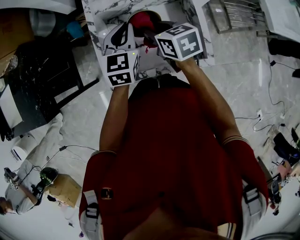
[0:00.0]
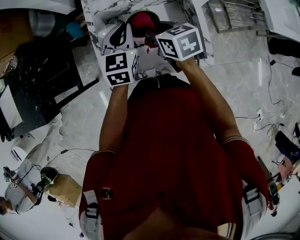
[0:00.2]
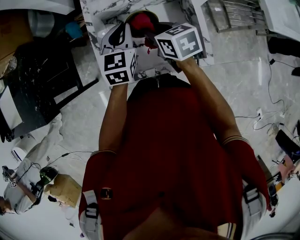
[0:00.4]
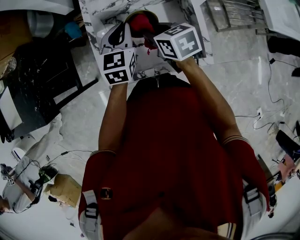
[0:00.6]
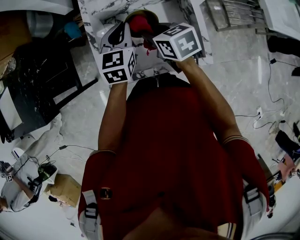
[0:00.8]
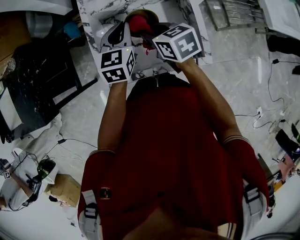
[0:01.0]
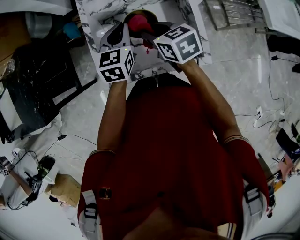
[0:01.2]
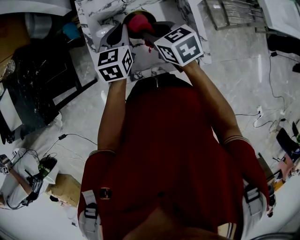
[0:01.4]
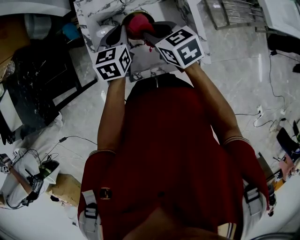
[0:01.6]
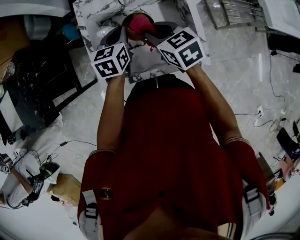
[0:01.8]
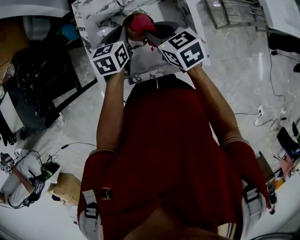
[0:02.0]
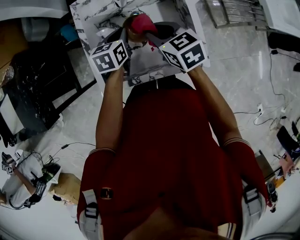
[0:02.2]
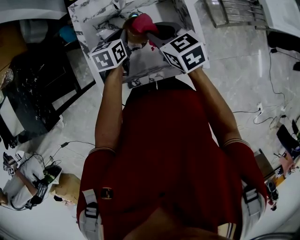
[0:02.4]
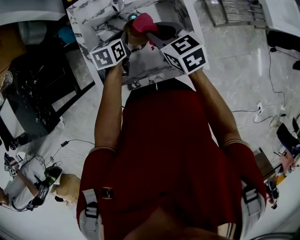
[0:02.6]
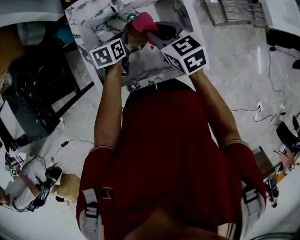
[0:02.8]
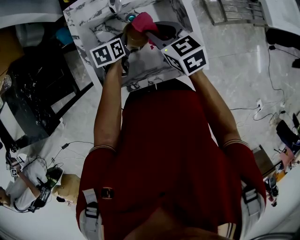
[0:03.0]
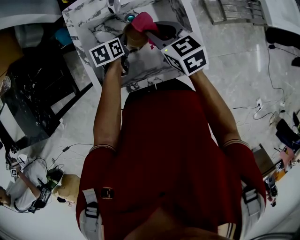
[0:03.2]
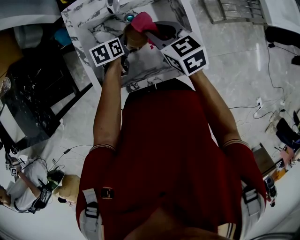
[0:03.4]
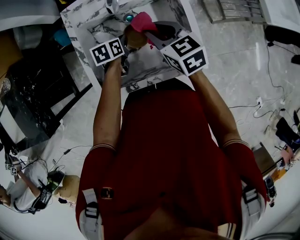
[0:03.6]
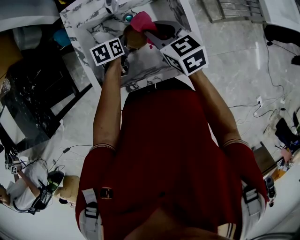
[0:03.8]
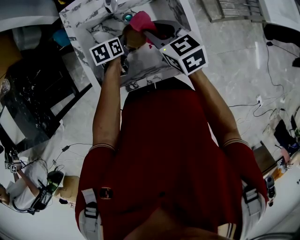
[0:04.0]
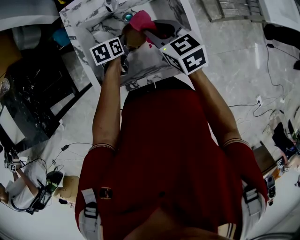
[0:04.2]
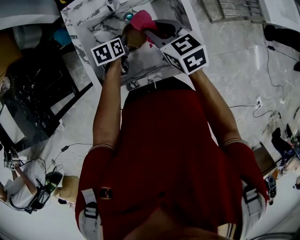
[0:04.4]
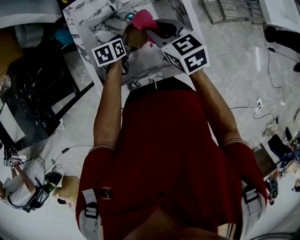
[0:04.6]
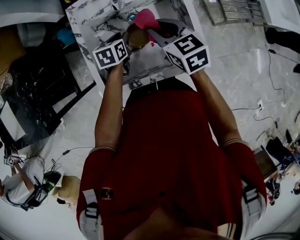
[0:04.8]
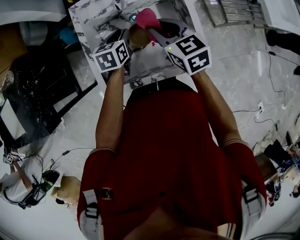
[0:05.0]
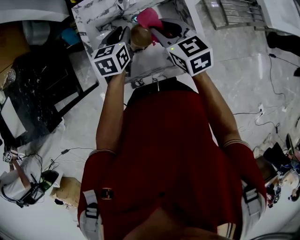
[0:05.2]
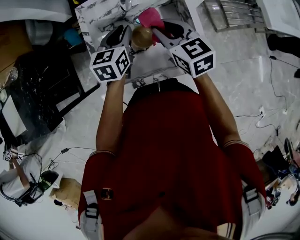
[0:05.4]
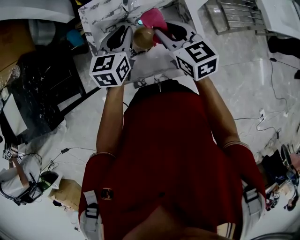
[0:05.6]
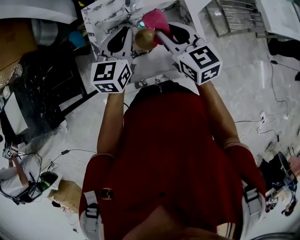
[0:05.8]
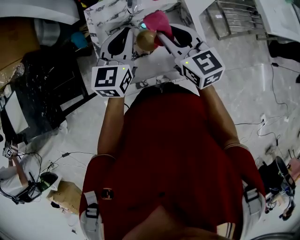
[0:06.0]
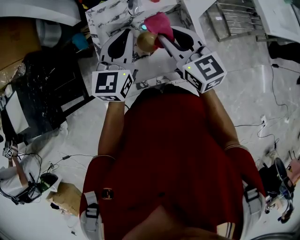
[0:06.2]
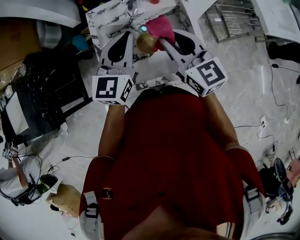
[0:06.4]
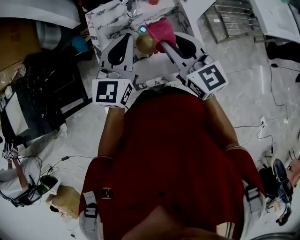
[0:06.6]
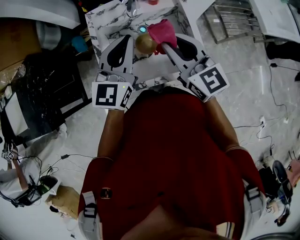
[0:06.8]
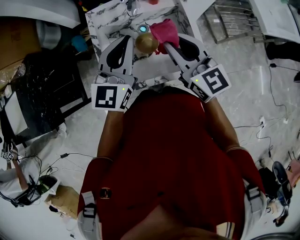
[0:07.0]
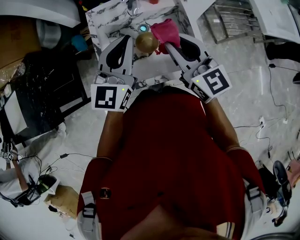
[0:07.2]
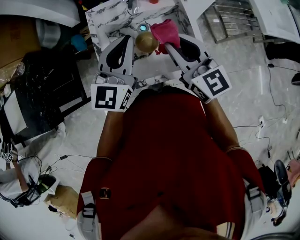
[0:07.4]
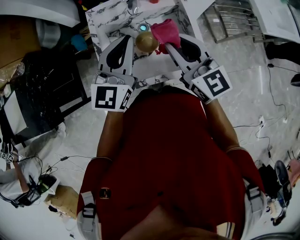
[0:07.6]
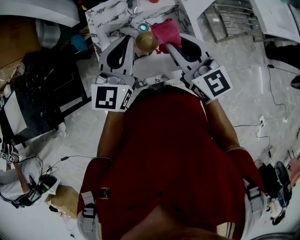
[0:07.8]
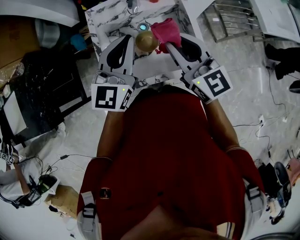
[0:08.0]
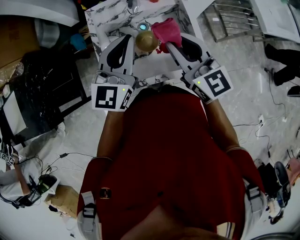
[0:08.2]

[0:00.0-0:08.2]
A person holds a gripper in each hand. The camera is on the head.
0:00.0 to 0:01.6: The left gripper ends up some 5 cm from where it was.
0:01.6 to 0:03.2: The left gripper is displaced downward by approximately 15 cm, and swivels roughly 30 degrees. Meanwhile the right gripper changes place by roughly 5 cm.
0:03.2 to 0:05.0: The left gripper shifts approximately 5 cm upward.
0:05.0 to 0:06.6: The left gripper heads upward, covering approximately 25 cm, and tilts its fingers some 40 degrees upward. Meanwhile the right gripper travels upward and backward by about 15 cm, and rotates some 30 degrees.
0:06.6 to 0:08.2: The grippers make only small movements.

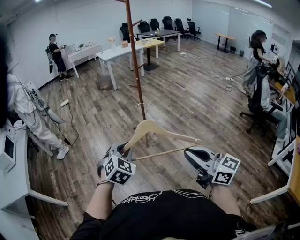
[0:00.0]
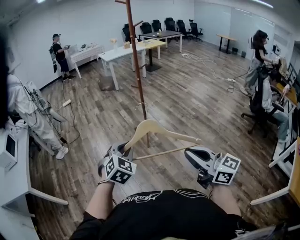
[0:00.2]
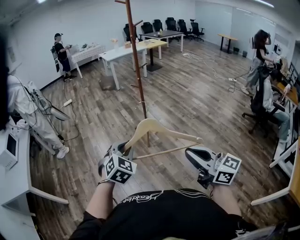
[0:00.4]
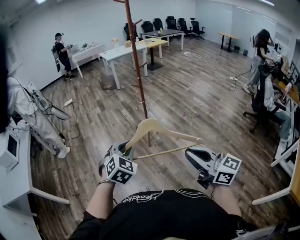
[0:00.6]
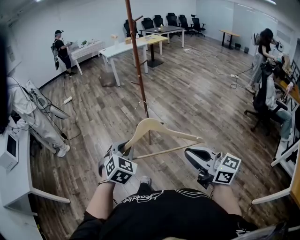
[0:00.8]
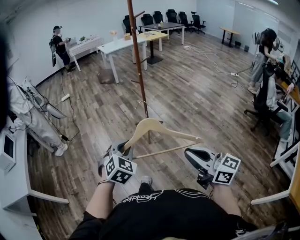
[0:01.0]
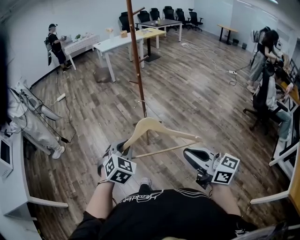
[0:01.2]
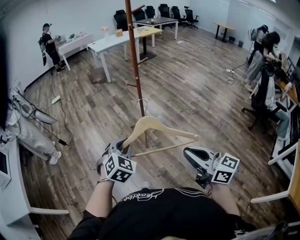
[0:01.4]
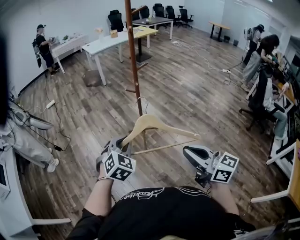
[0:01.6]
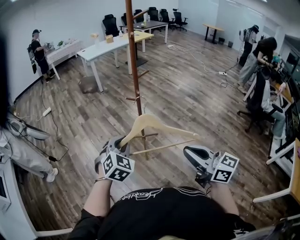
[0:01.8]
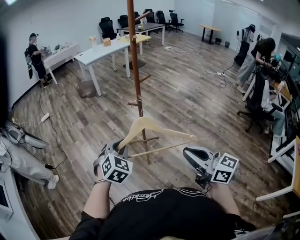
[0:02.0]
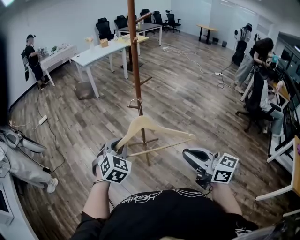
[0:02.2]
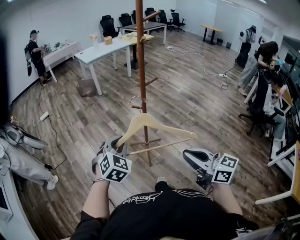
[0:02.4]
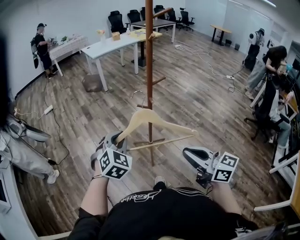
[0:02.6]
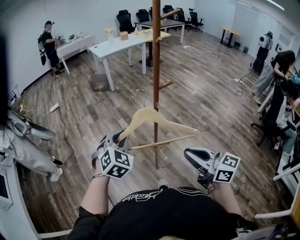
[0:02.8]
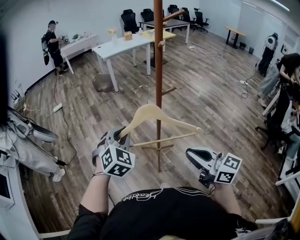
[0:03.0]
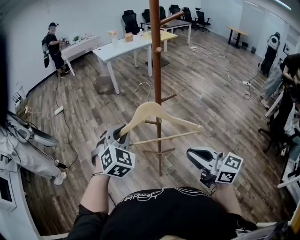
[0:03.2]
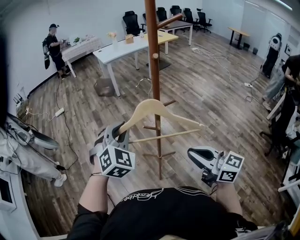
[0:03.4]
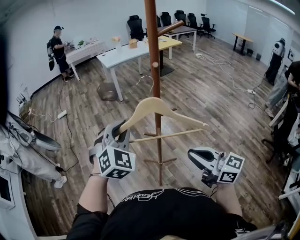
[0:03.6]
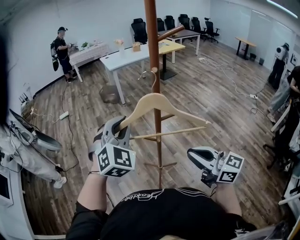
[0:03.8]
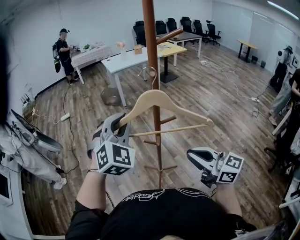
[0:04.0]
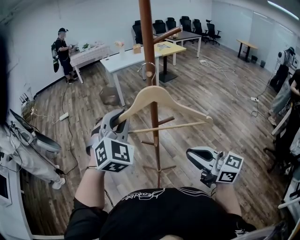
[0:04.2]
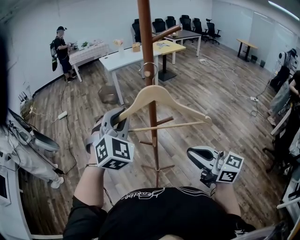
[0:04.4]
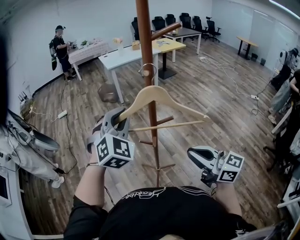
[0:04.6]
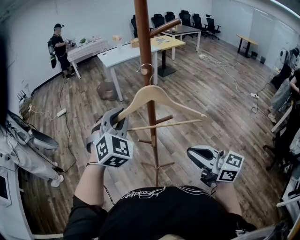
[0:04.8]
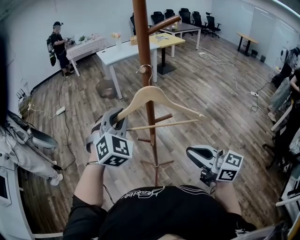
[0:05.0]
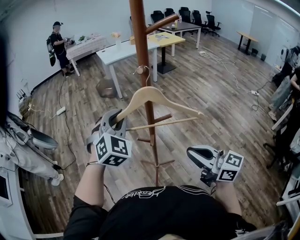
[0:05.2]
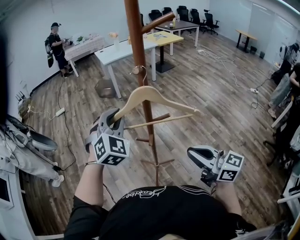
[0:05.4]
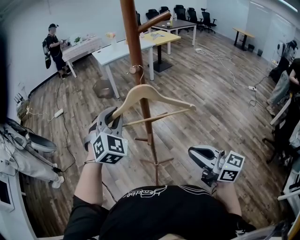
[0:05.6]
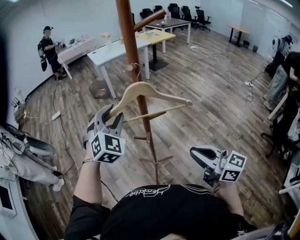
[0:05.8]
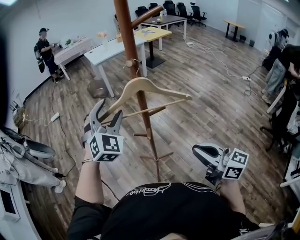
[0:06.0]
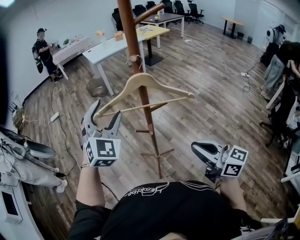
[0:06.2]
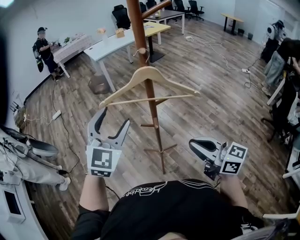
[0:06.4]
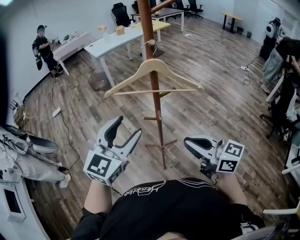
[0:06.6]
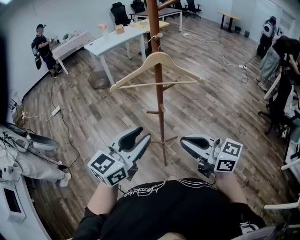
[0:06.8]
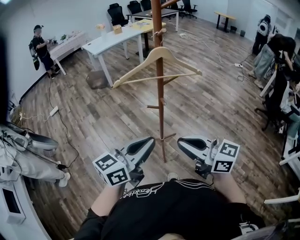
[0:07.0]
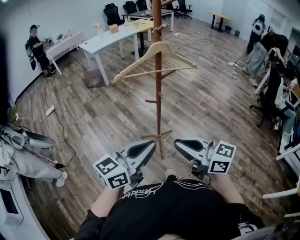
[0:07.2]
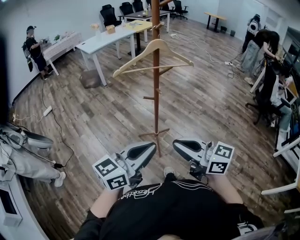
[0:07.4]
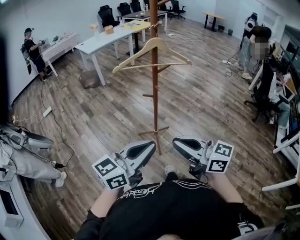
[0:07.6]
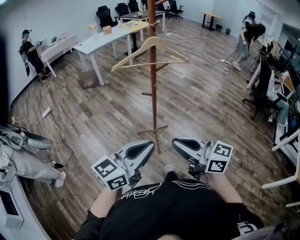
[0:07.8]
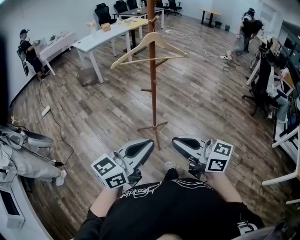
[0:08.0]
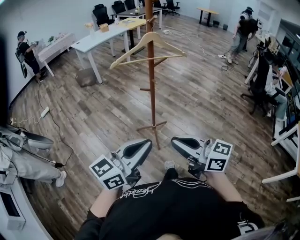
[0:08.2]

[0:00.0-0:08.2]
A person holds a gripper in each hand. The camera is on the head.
0:00.0 to 0:01.6: The grippers both shift forward by about 25 cm.
0:01.6 to 0:03.2: The grippers both shift forward by roughly 30 cm.
0:03.2 to 0:05.0: The left gripper goes some 15 cm forward, to the right and upward; the right gripper moves to the right and forward, approximately 15 cm.
0:05.0 to 0:06.6: The left gripper goes approximately 15 cm backward and to the left, changes its angle by roughly 50 degrees, and opens up; the right gripper travels to the left and backward by some 10 cm.
0:06.6 to 0:08.2: The right gripper heads backward and to the left, covering roughly 25 cm. The left gripper goes roughly 25 cm backward, rotates some 40 degrees, and closes its fingers.

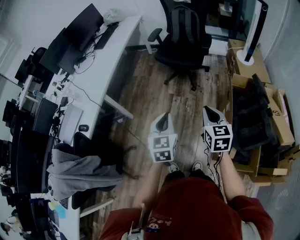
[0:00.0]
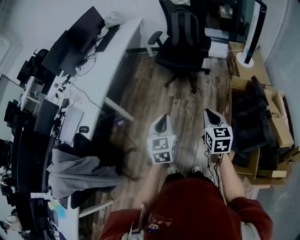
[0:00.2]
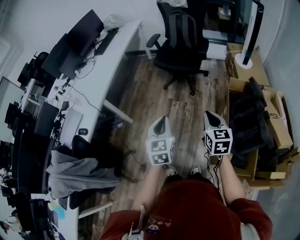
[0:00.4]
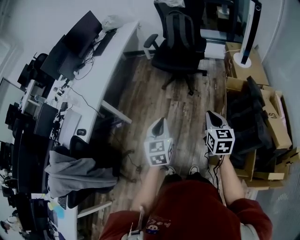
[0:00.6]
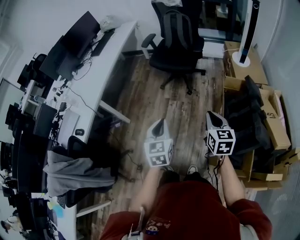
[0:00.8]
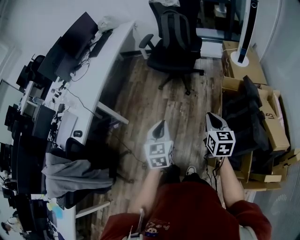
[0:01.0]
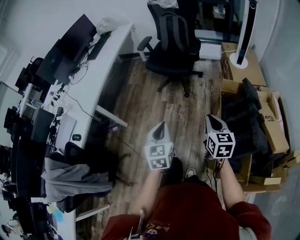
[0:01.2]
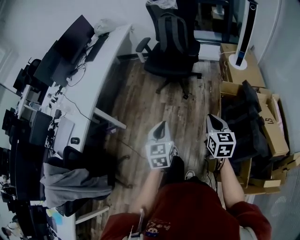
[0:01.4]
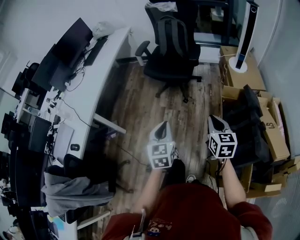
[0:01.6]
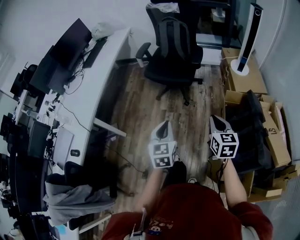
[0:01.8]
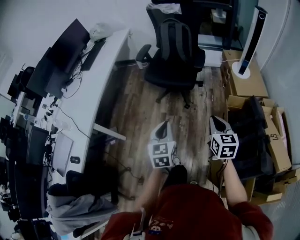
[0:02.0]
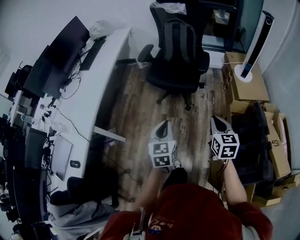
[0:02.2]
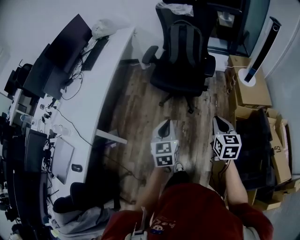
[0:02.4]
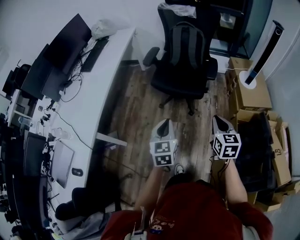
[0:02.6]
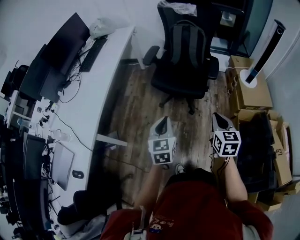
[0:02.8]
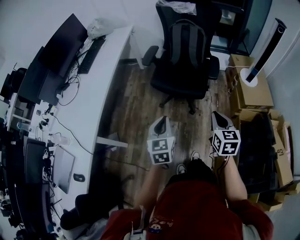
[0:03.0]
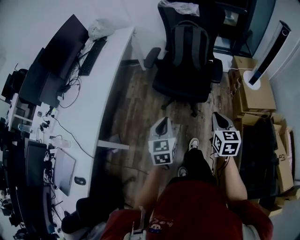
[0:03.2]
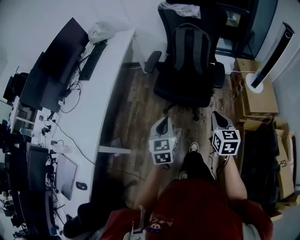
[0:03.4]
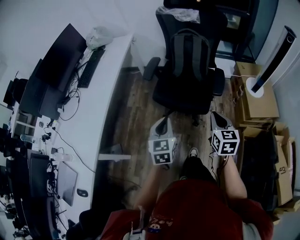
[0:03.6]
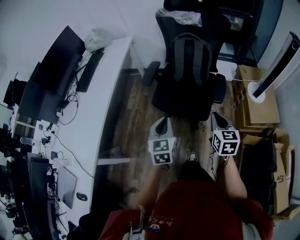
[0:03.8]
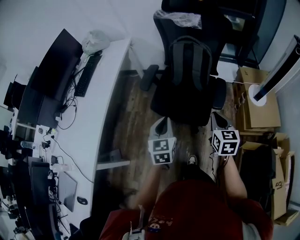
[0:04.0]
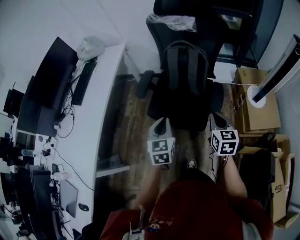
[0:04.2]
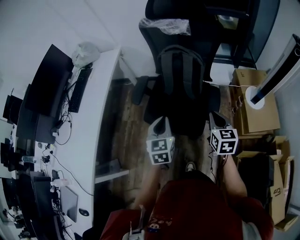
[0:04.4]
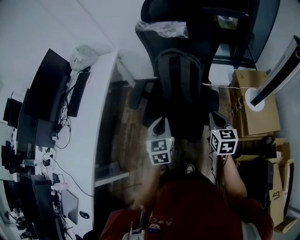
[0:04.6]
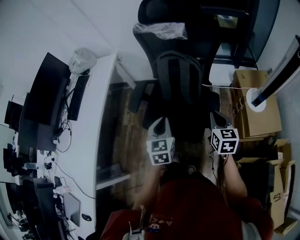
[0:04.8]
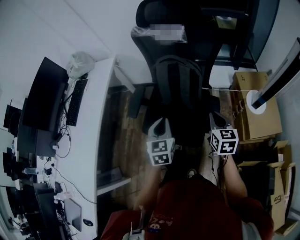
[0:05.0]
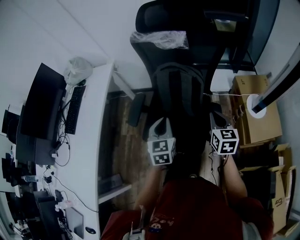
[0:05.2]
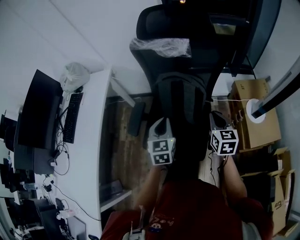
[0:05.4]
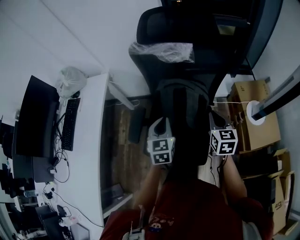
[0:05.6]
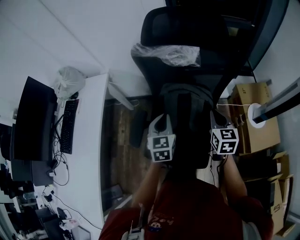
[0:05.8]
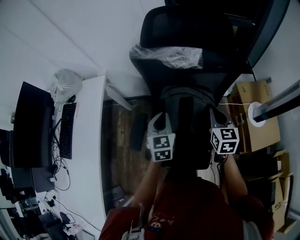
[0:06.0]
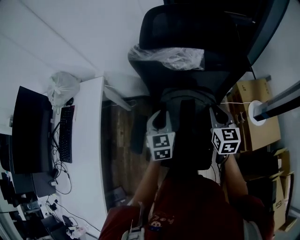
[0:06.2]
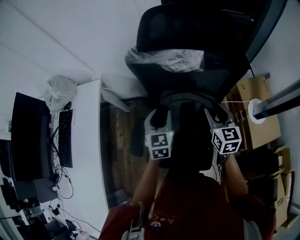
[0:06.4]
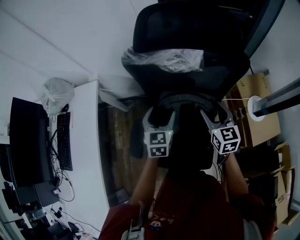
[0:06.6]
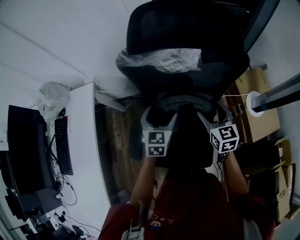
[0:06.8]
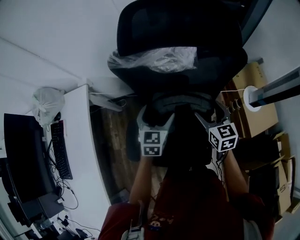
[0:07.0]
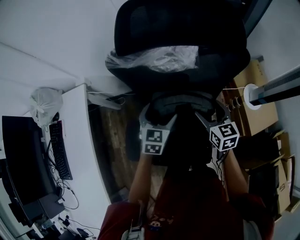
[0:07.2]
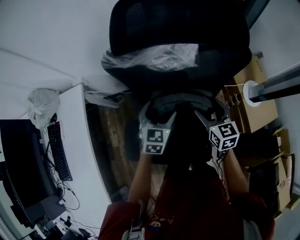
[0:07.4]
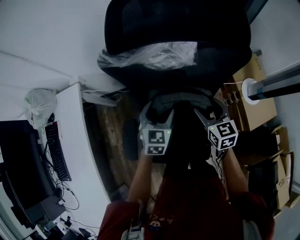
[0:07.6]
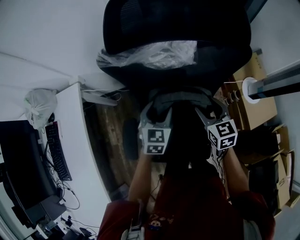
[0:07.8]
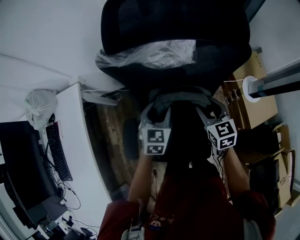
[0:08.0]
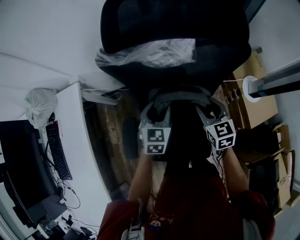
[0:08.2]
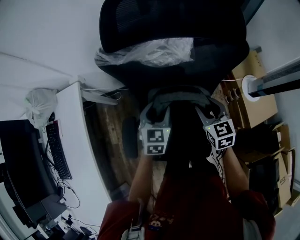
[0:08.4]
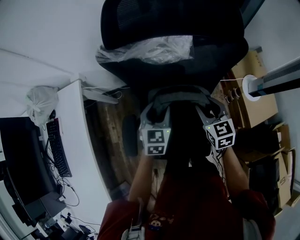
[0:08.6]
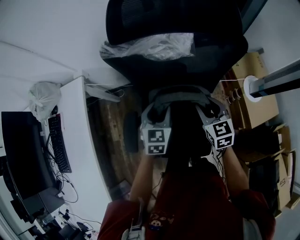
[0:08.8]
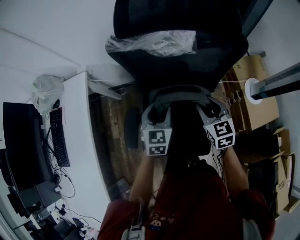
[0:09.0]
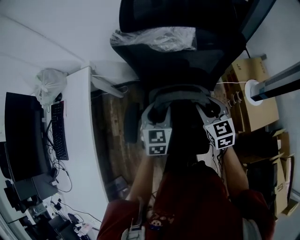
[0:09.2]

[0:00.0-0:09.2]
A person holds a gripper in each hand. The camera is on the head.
0:00.0 to 0:01.6: Both grippers travel together to the right and forward, some 15 cm.
0:01.6 to 0:03.0: Both grippers travel together forward and to the left, about 30 cm.
0:03.0 to 0:04.6: Both grippers are carried forward, about 40 cm.
0:04.6 to 0:06.2: Both grippers move forward, roughly 35 cm.
0:06.2 to 0:07.6: The left gripper is displaced forward and downward by approximately 10 cm, swivels approximately 20 degrees, and opens; the right gripper travels downward and forward by about 10 cm, and opens.
0:07.6 to 0:09.2: The two grippers go some 10 cm backward. The right gripper closes.
